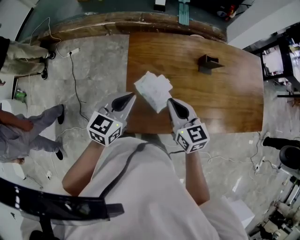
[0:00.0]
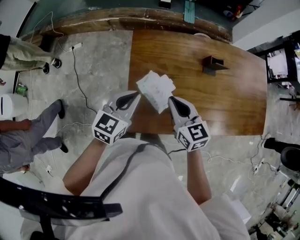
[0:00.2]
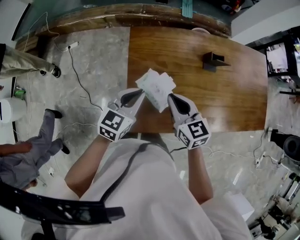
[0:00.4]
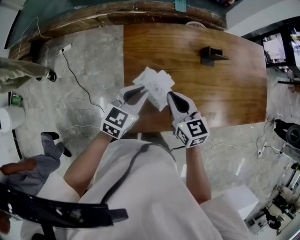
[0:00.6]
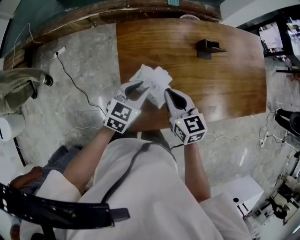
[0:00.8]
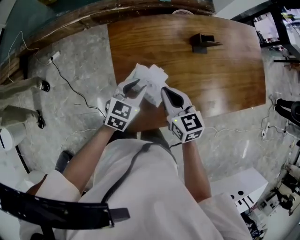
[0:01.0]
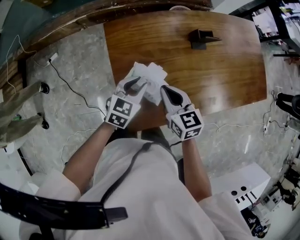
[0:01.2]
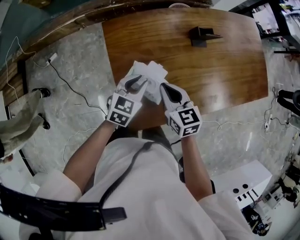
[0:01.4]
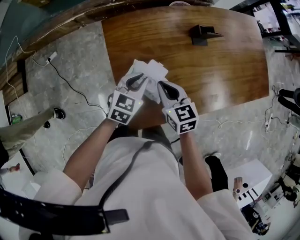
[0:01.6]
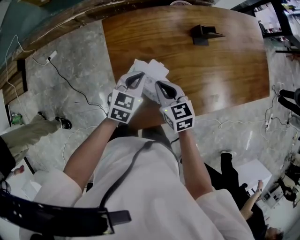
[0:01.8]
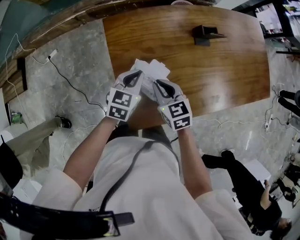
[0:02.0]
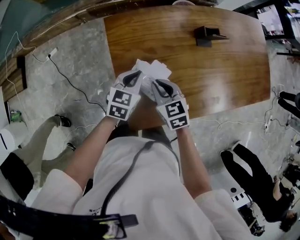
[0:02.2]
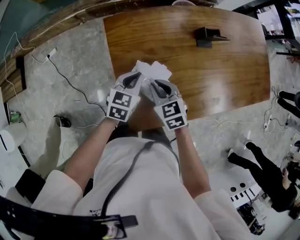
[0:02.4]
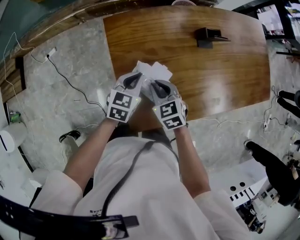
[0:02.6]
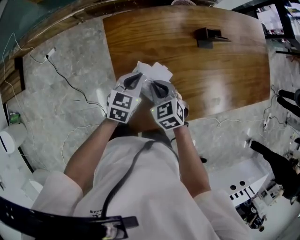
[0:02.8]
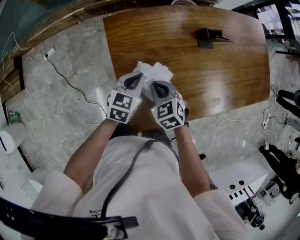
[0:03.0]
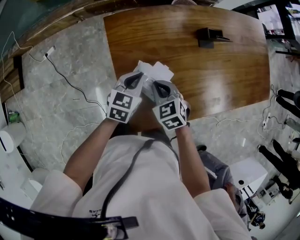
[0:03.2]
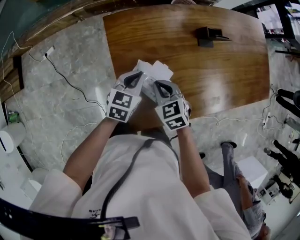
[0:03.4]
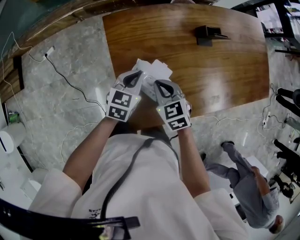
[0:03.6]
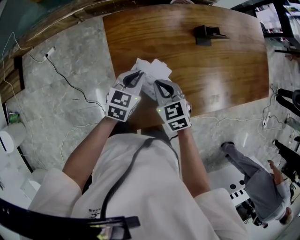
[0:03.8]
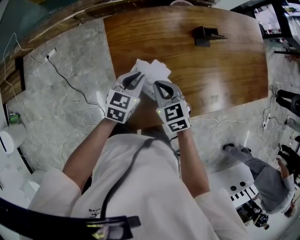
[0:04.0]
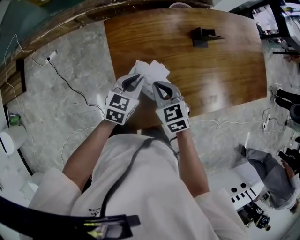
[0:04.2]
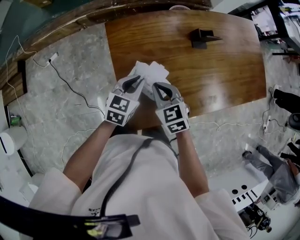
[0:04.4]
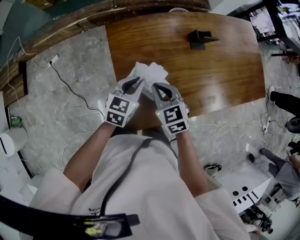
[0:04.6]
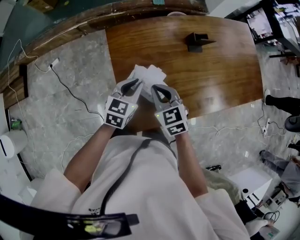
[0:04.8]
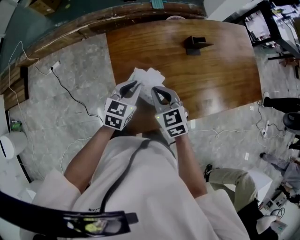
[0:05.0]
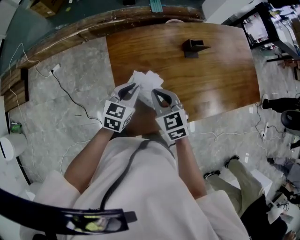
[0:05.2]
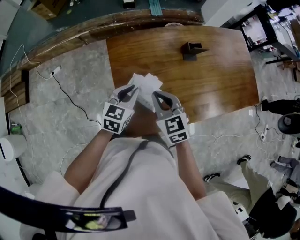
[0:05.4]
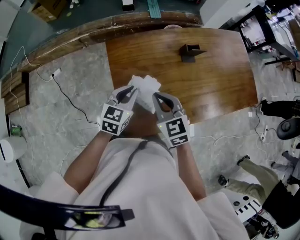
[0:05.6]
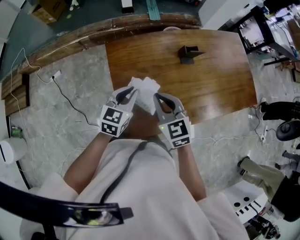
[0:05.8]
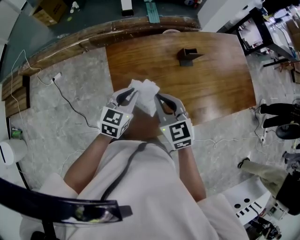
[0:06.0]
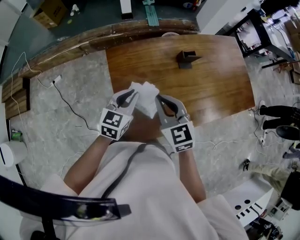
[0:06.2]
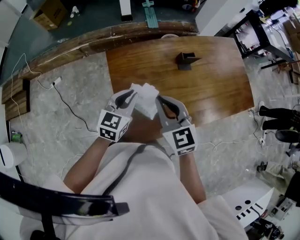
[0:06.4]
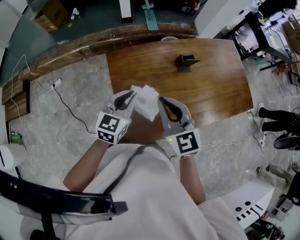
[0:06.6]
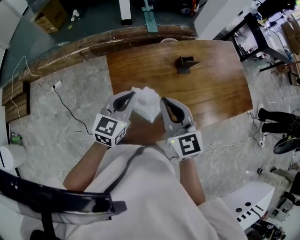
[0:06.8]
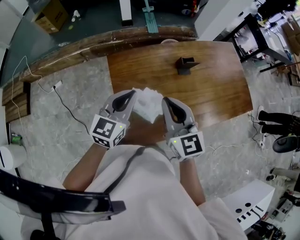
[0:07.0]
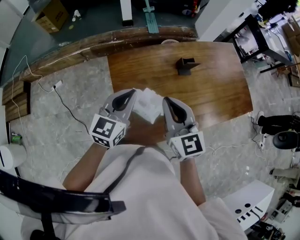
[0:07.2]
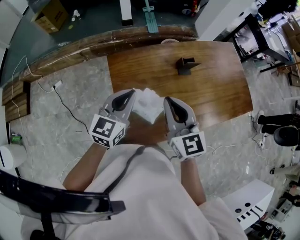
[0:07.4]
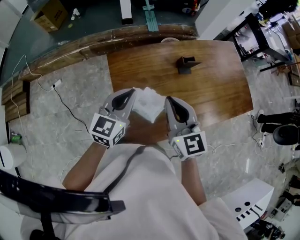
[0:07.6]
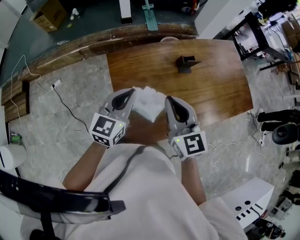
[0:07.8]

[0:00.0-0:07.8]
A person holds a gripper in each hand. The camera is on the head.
0:00.0 to 0:01.6: The left gripper travels downward, forward and to the right by some 15 cm, and turns by about 20 degrees. Meanwhile the right gripper goes approximately 10 cm downward.
0:01.6 to 0:03.2: The right gripper moves downward, about 5 cm, and turns by some 30 degrees.
0:03.2 to 0:04.6: The right gripper heads upward, covering roughly 5 cm. The left gripper ends up some 5 cm from where it was.
0:04.6 to 0:06.2: The left gripper shifts about 10 cm upward. The right gripper shifts roughly 15 cm upward.
0:06.2 to 0:07.8: Both grippers travel together upward, about 5 cm.

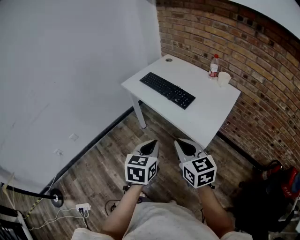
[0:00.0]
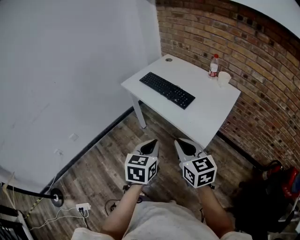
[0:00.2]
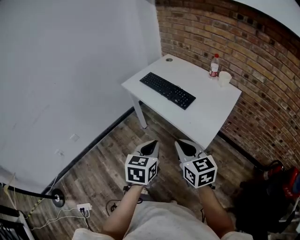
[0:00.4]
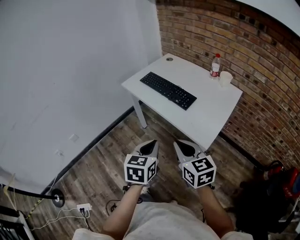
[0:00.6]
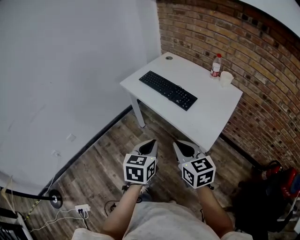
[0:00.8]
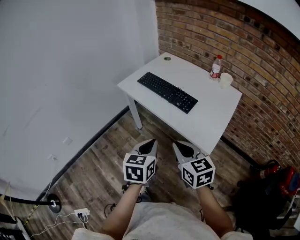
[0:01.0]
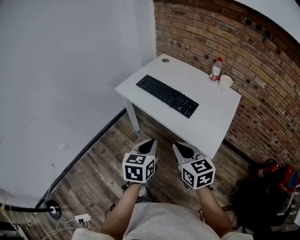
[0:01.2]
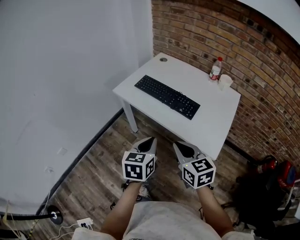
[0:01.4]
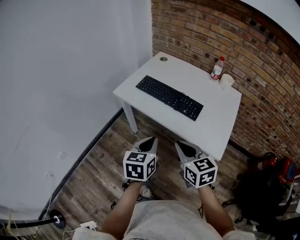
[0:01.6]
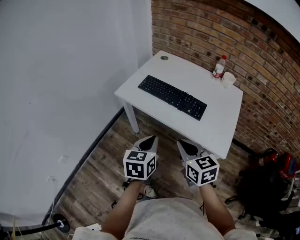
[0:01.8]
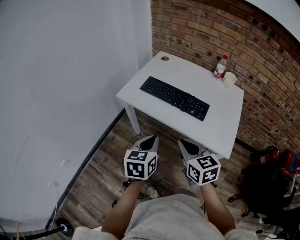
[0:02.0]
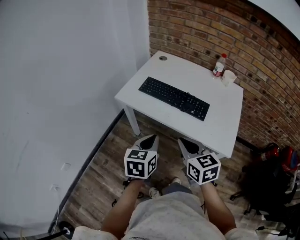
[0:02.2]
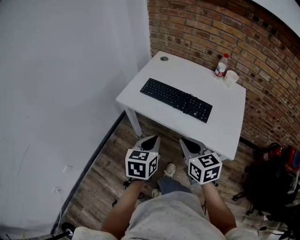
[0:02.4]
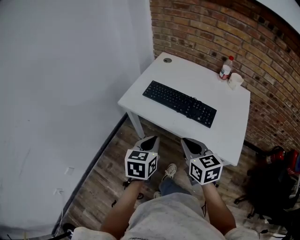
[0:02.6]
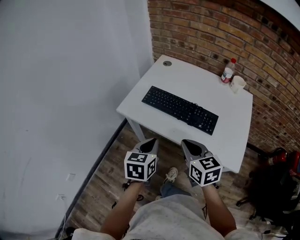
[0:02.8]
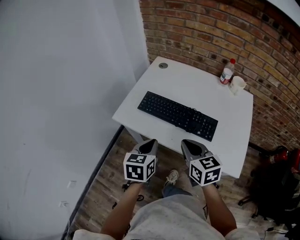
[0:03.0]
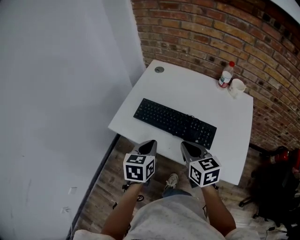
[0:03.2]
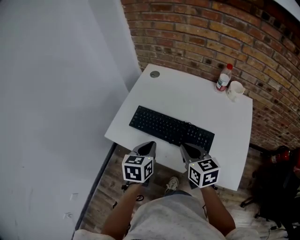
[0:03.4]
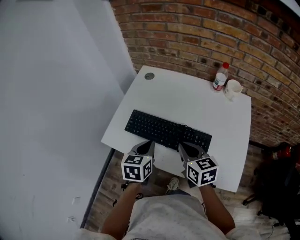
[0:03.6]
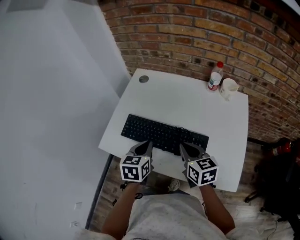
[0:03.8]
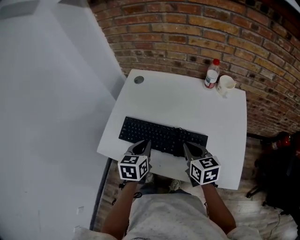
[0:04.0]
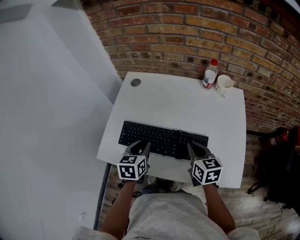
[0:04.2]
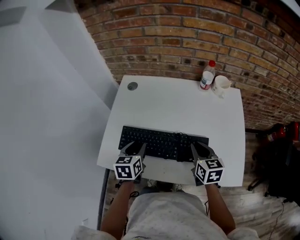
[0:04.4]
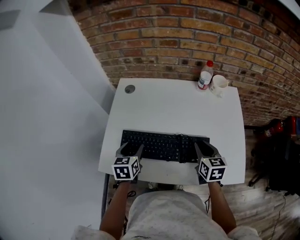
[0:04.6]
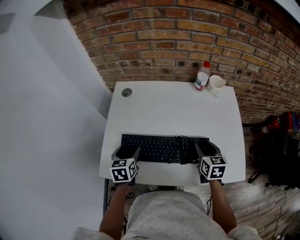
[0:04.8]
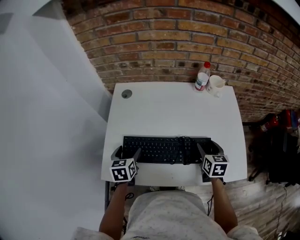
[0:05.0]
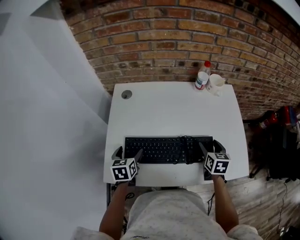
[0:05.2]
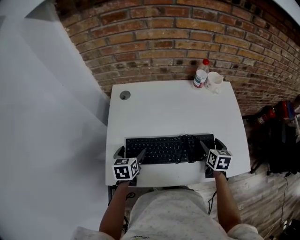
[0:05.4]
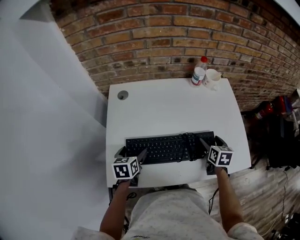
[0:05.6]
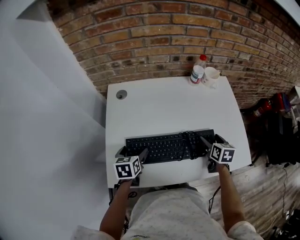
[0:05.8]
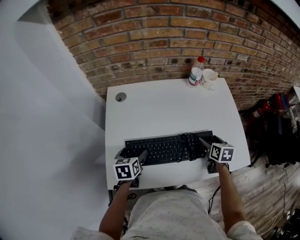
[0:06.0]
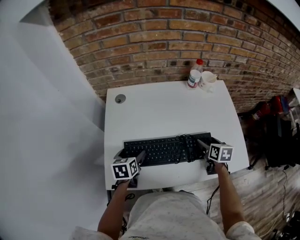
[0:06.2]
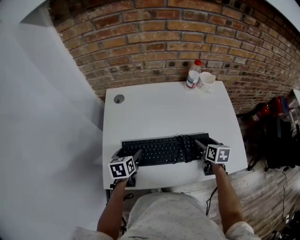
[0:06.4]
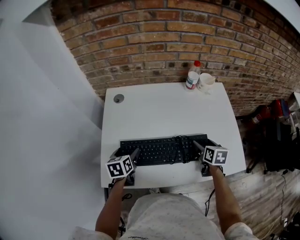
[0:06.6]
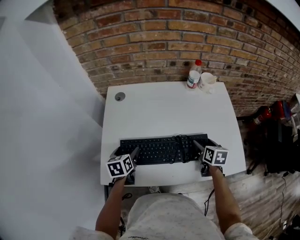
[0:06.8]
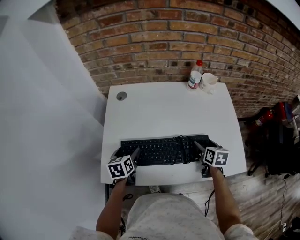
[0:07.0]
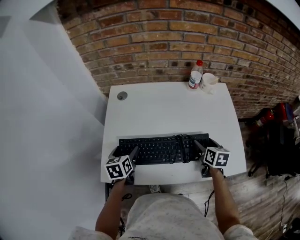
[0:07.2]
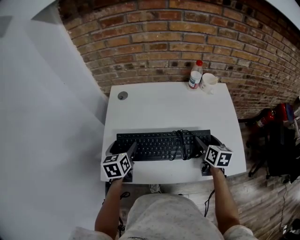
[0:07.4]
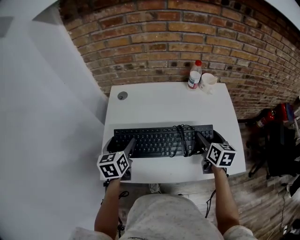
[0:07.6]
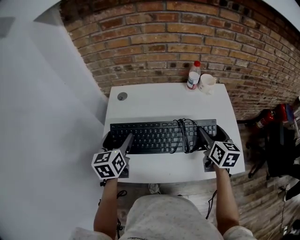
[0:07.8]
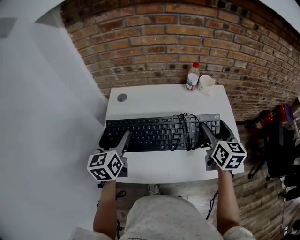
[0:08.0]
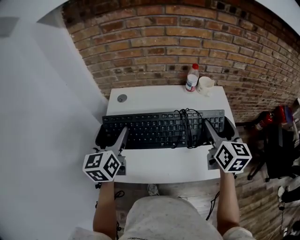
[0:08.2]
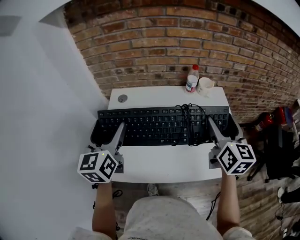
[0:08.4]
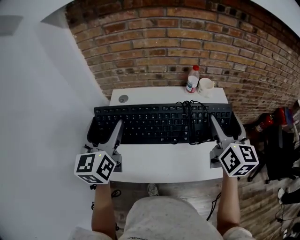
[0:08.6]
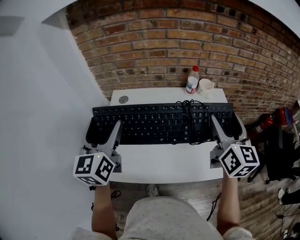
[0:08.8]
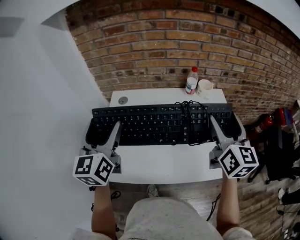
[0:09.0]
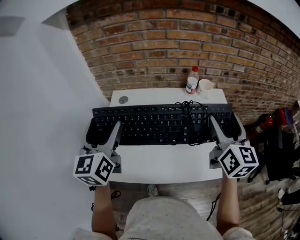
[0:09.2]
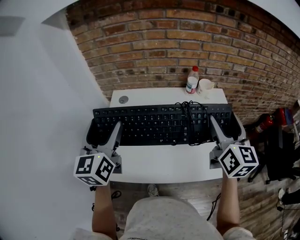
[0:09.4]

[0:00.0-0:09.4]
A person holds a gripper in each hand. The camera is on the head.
0:00.0 to 0:01.6: The two grippers go approximately 20 cm forward and to the left.
0:01.6 to 0:03.2: The grippers both shift forward by approximately 25 cm.
0:03.2 to 0:04.8: The left gripper heads forward, covering roughly 20 cm, and opens up, while the right gripper shifts some 20 cm to the right, forward and downward, turns by approximately 40 degrees, and opens up.
0:04.8 to 0:06.2: The right gripper moves about 5 cm, and opens its fingers.
0:06.2 to 0:07.8: The grippers both shift upward by about 15 cm. The left gripper rotates about 30 degrees; the right gripper changes its angle by some 20 degrees.
0:07.8 to 0:09.4: Both grippers travel together upward, approximately 15 cm. The left gripper turns by about 20 degrees, while the right gripper turns by approximately 20 degrees.

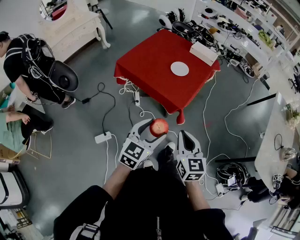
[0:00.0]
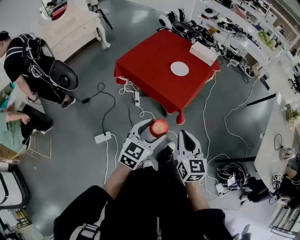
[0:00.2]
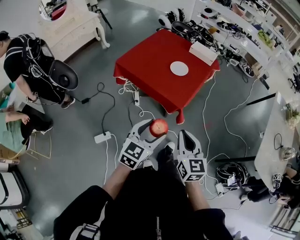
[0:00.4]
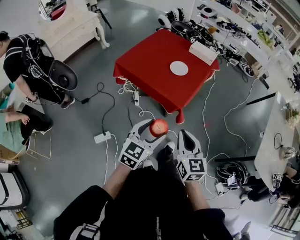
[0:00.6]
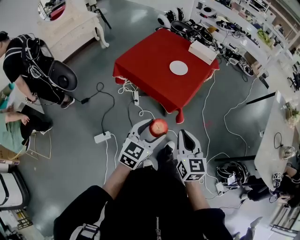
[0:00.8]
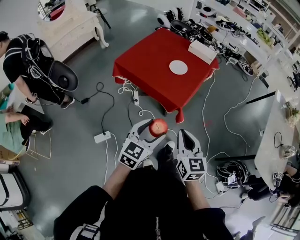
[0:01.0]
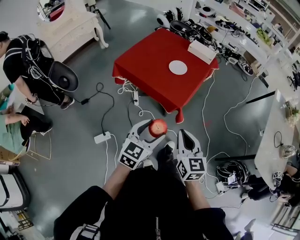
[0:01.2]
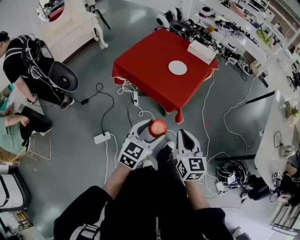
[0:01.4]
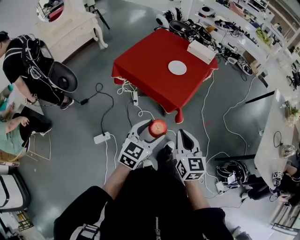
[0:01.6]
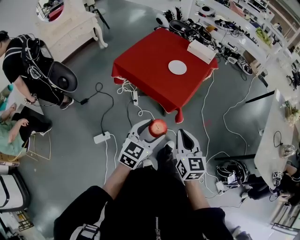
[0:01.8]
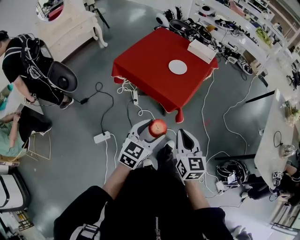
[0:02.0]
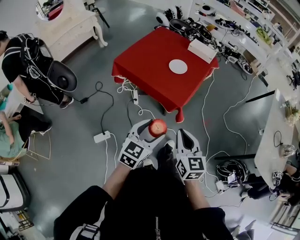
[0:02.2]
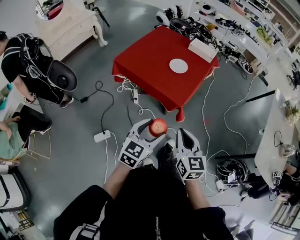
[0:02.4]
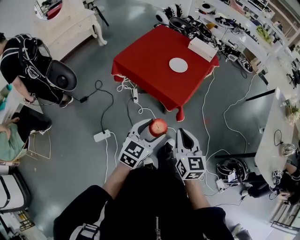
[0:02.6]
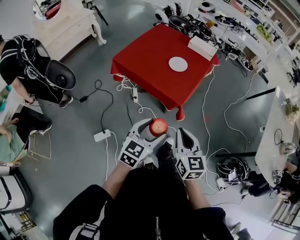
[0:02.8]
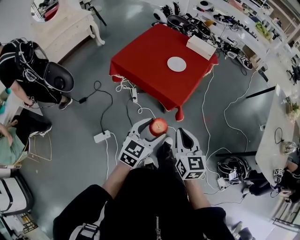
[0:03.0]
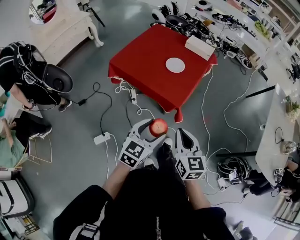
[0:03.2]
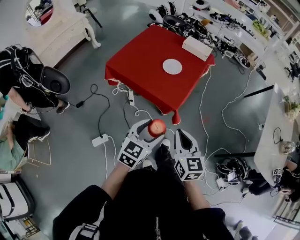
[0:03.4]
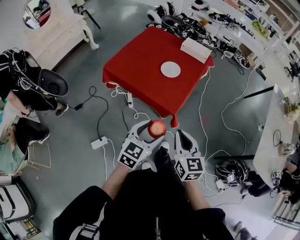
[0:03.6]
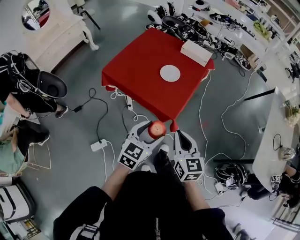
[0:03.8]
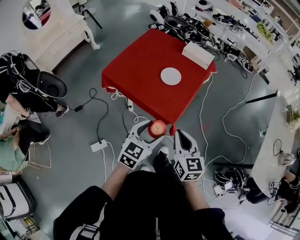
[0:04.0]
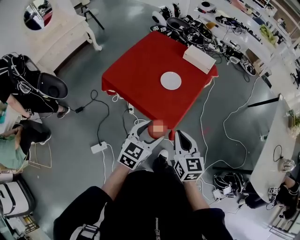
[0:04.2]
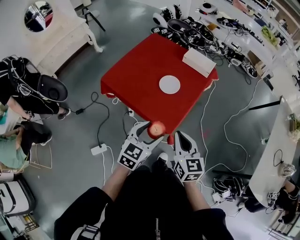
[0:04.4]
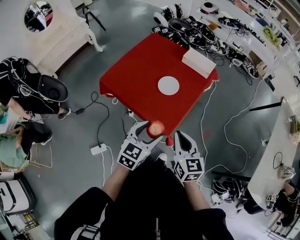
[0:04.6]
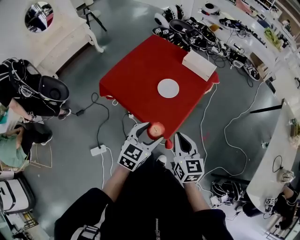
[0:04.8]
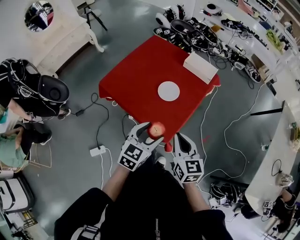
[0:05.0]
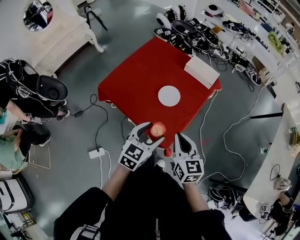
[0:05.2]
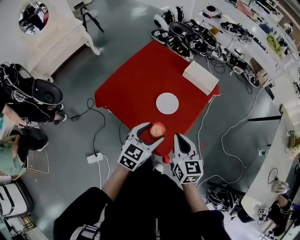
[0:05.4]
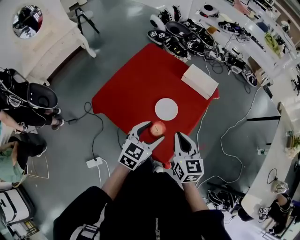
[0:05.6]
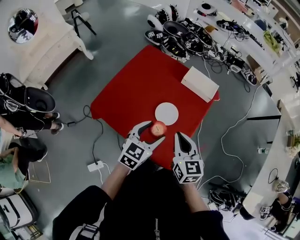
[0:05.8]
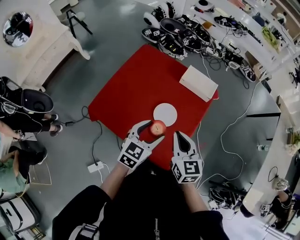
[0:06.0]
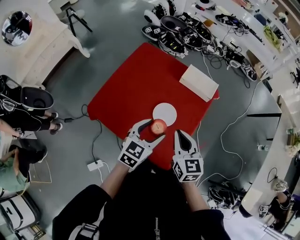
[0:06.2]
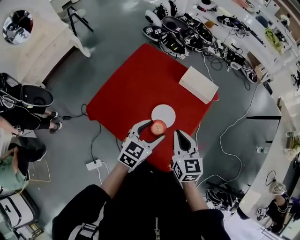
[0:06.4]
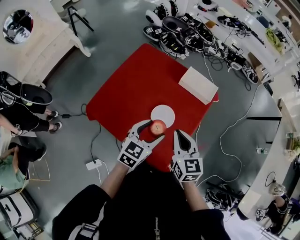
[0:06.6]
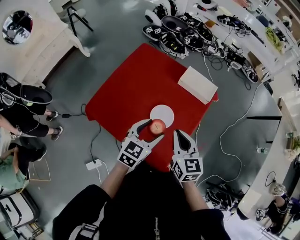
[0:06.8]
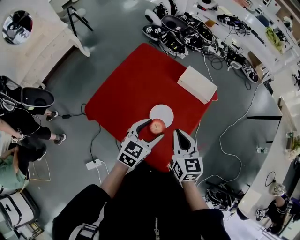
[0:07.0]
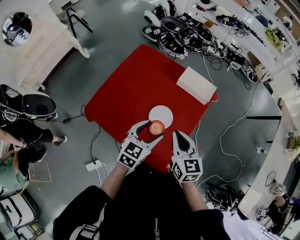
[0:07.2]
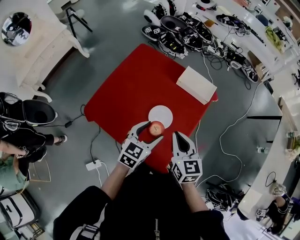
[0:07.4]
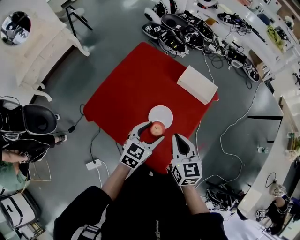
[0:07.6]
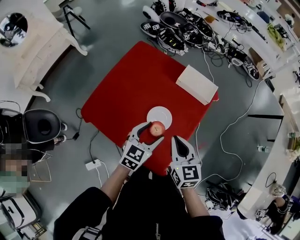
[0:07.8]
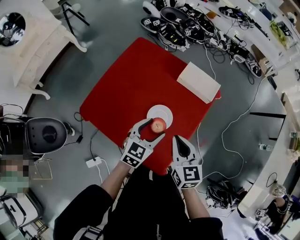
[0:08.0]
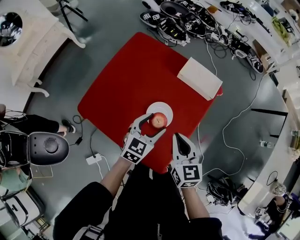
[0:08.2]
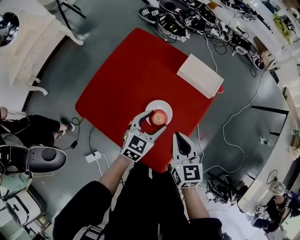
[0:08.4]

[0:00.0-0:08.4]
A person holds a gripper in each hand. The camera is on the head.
0:00.0 to 0:01.4: The two grippers keep their place.
0:01.4 to 0:02.8: The grippers make only small movements.
0:02.8 to 0:04.2: The grippers both shift forward by some 20 cm.
0:04.2 to 0:05.6: Both grippers move forward, roughly 25 cm.
0:05.6 to 0:07.0: The grippers both shift forward by approximately 10 cm.
0:07.0 to 0:08.4: The left gripper is displaced downward and forward by approximately 10 cm. The right gripper shifts by some 5 cm.
